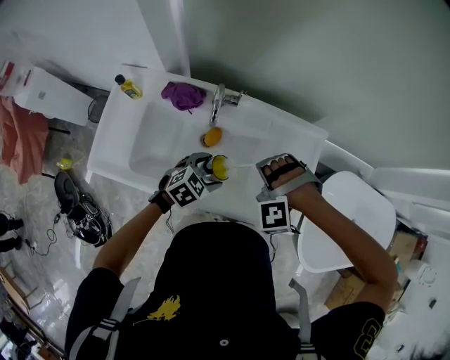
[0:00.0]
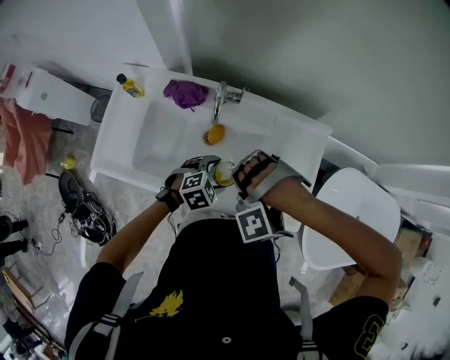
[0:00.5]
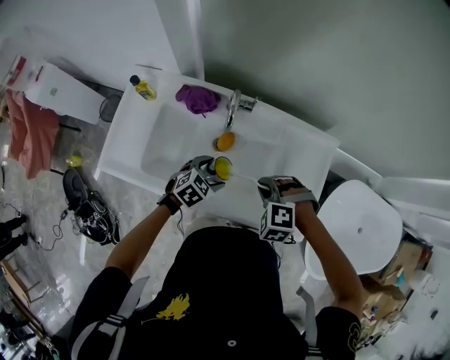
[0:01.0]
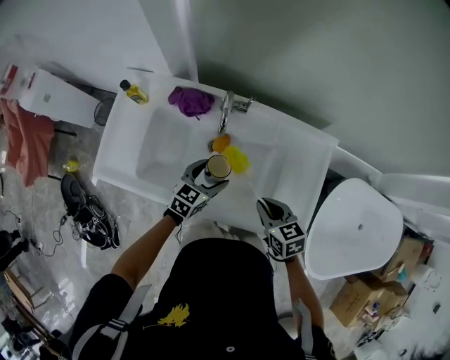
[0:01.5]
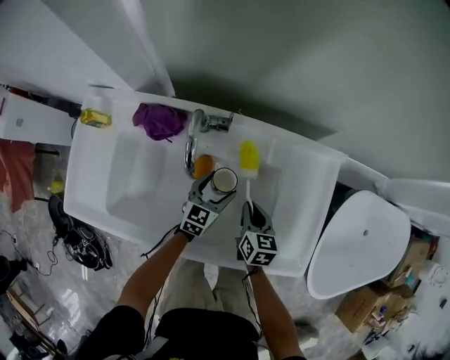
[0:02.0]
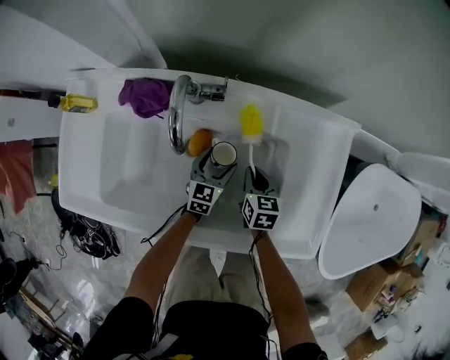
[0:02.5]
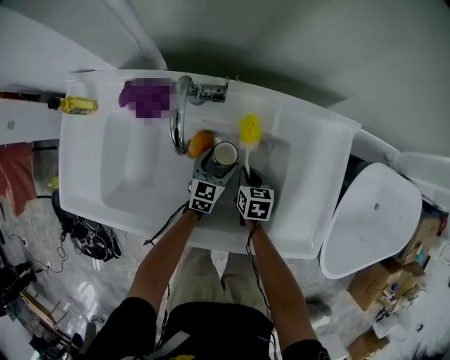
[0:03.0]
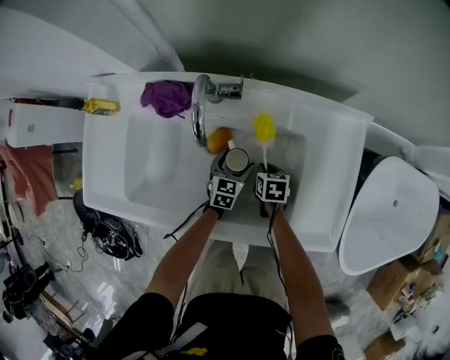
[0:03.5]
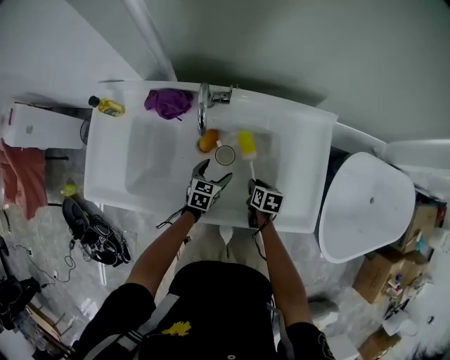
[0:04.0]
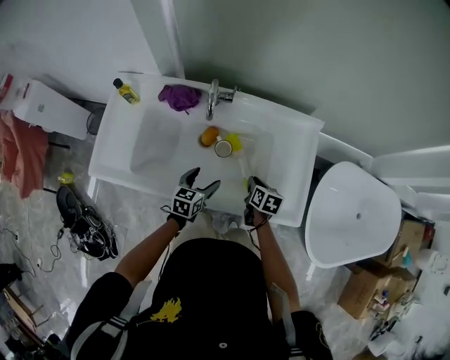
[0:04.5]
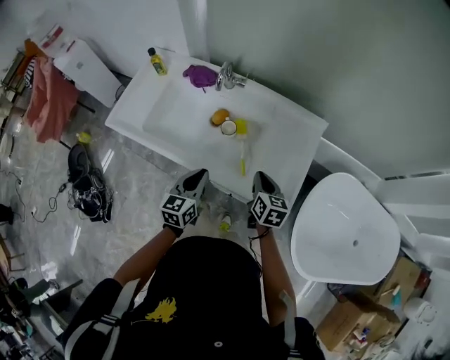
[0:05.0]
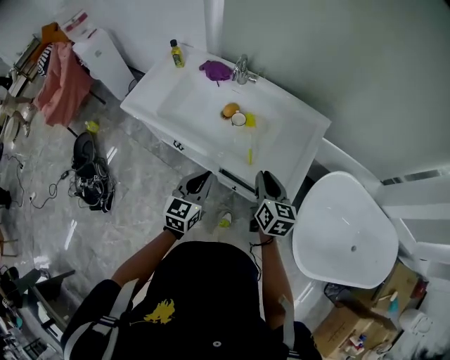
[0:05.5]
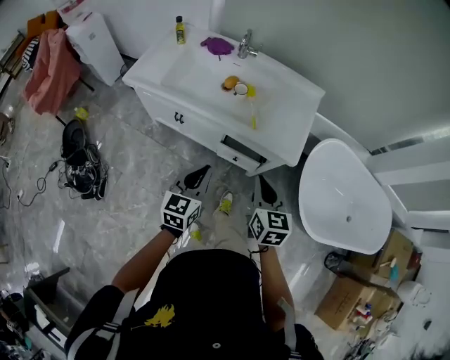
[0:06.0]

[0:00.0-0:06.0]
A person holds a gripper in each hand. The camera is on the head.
0:00.0 to 0:02.0: The right gripper heads downward, covering approximately 25 cm, and twists approximately 120 degrees clockwise, seen from behind. Meanwhile the left gripper goes roughly 15 cm downward, and changes its angle by roughly 30 degrees.
0:02.0 to 0:04.0: The right gripper is displaced downward and backward by roughly 10 cm, and changes its angle by some 20 degrees. The left gripper heads backward, covering about 5 cm, and reaches about 10 cm downward, then returns.
0:04.0 to 0:06.0: Both grippers are carried backward, roughly 50 cm. Both grippers move upward, roughly 30 cm. The right gripper tilts its fingers roughly 40 degrees upward. The left gripper turns by about 30 degrees, and closes.

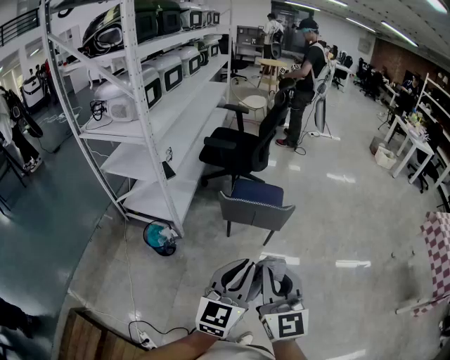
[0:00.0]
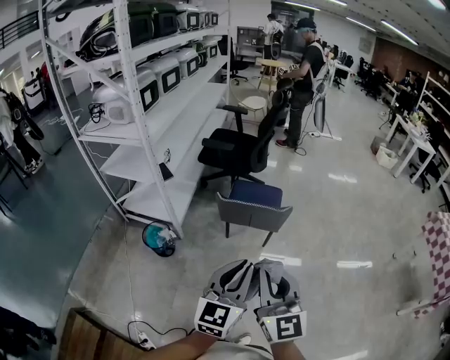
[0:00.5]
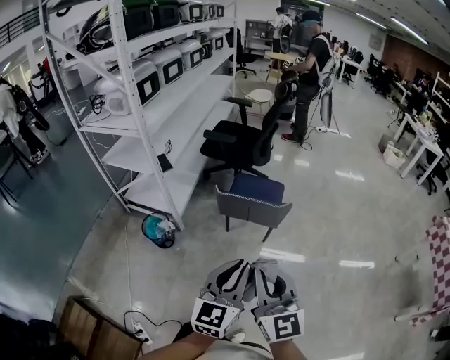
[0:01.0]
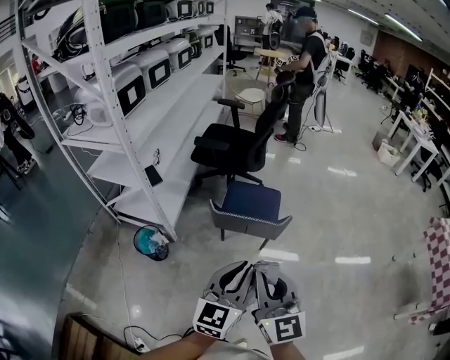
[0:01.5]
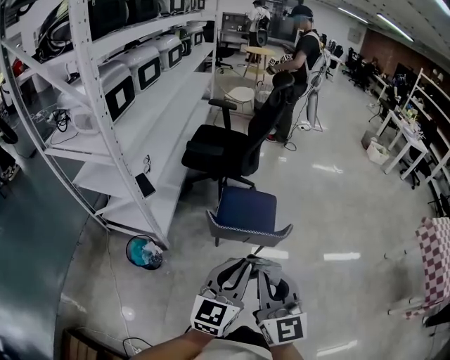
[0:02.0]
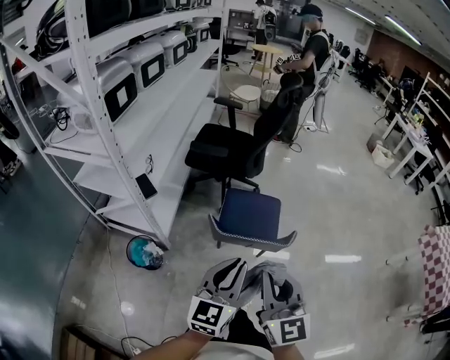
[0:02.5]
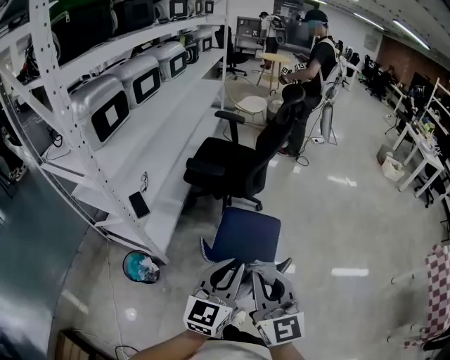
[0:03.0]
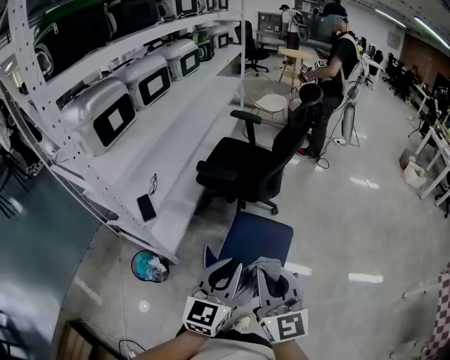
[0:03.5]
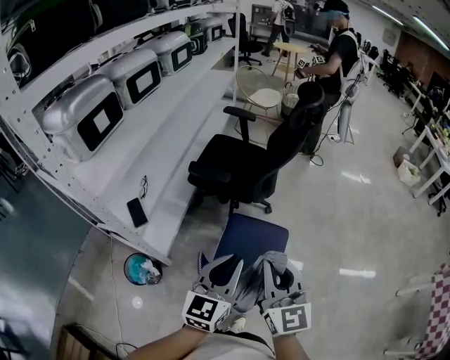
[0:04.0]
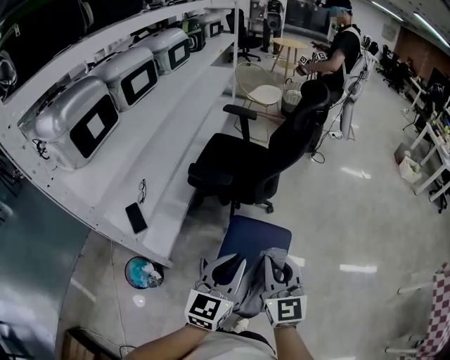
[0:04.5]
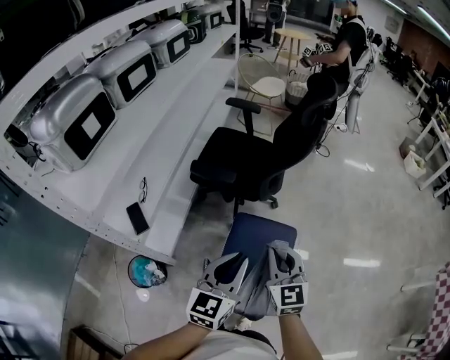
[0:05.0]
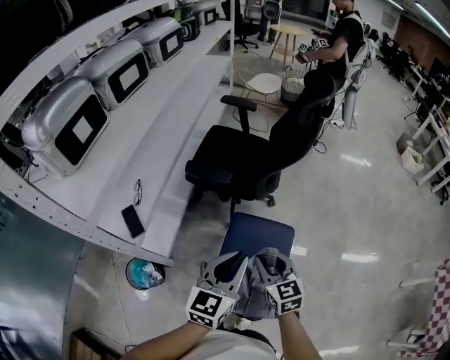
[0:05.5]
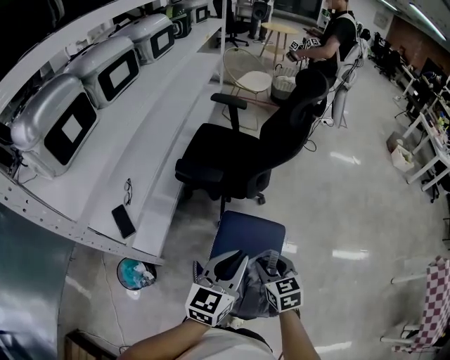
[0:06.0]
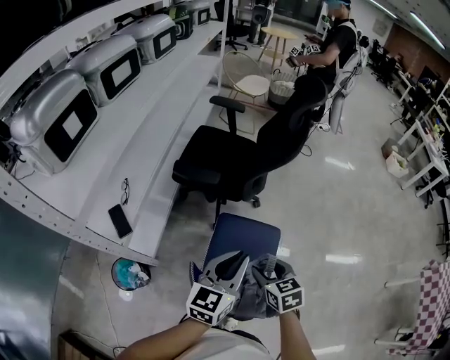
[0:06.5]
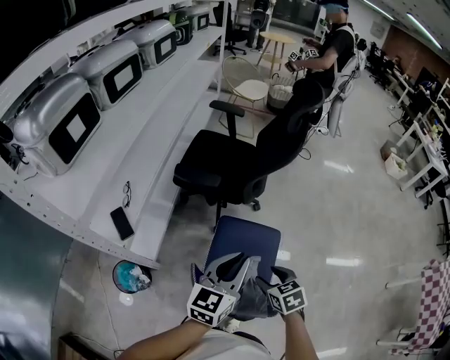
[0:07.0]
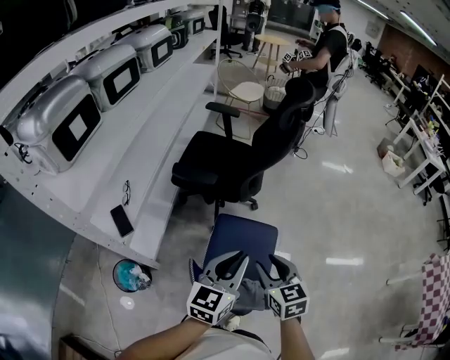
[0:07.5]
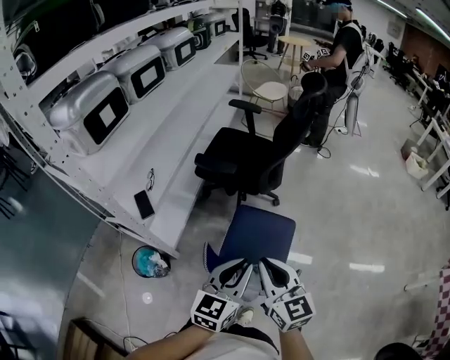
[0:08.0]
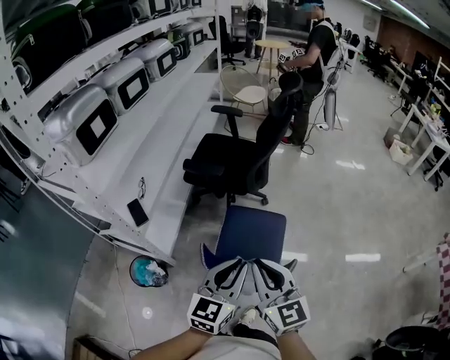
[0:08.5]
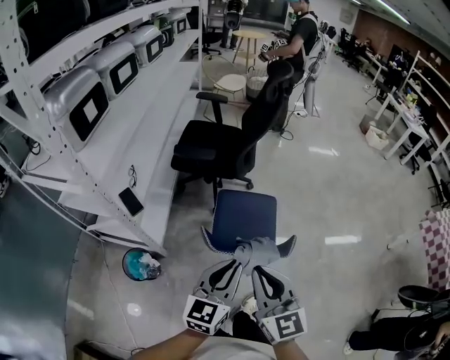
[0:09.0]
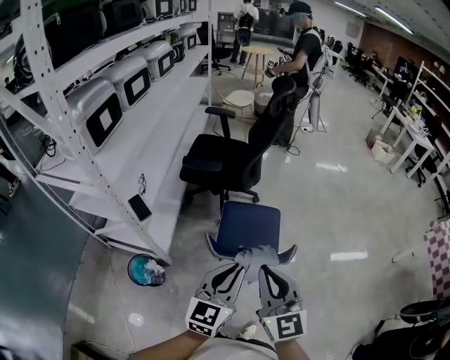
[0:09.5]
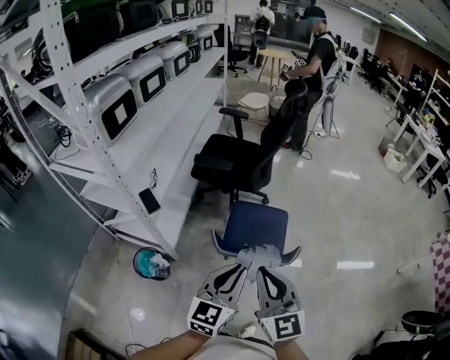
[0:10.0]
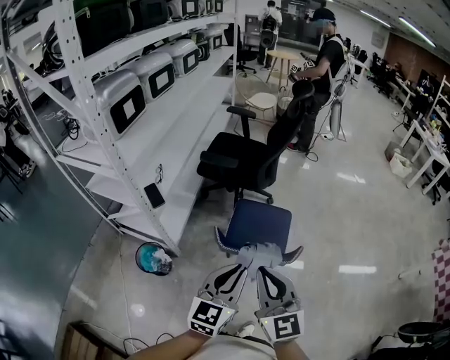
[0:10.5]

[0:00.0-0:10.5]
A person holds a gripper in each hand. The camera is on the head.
0:00.0 to 0:02.0: The grippers both shift forward by roughly 20 cm.
0:02.0 to 0:04.0: Both grippers move forward, roughly 30 cm.
0:04.0 to 0:06.5: The right gripper travels downward by about 20 cm, points its fingers some 40 degrees further downward, and opens its fingers. The left gripper shifts approximately 10 cm forward.
0:06.5 to 0:08.5: The right gripper travels upward and backward by some 25 cm, points its fingers some 40 degrees further upward, and closes; the left gripper travels backward by some 15 cm.
0:08.5 to 0:10.5: The grippers both shift backward by some 15 cm.

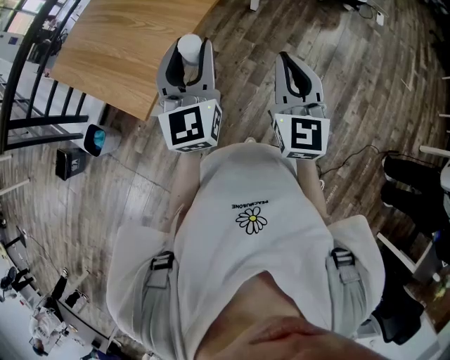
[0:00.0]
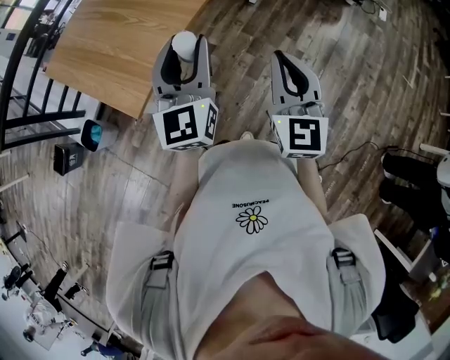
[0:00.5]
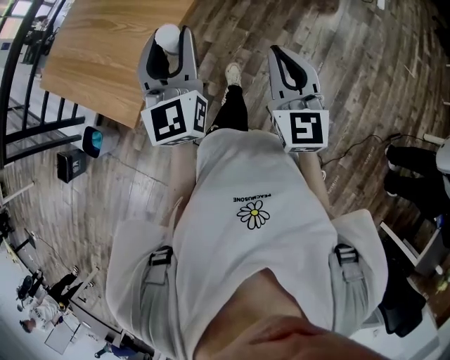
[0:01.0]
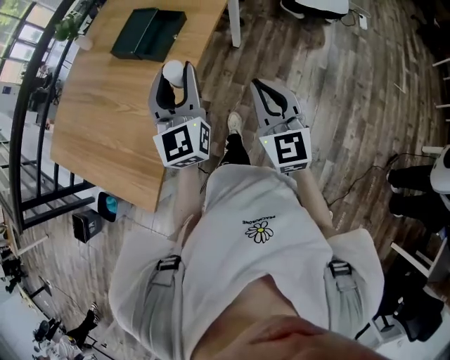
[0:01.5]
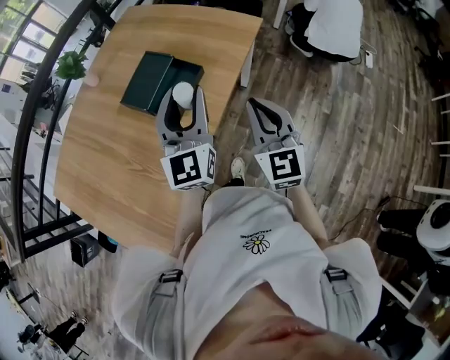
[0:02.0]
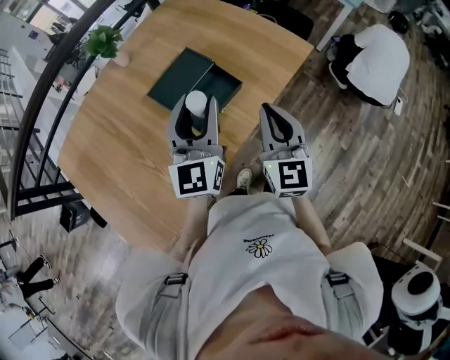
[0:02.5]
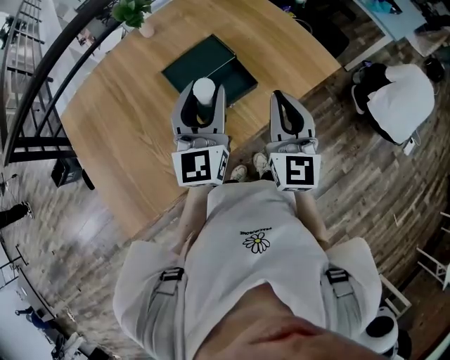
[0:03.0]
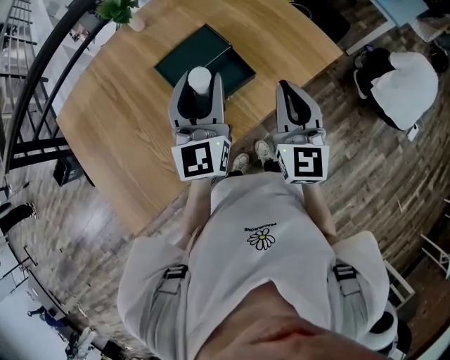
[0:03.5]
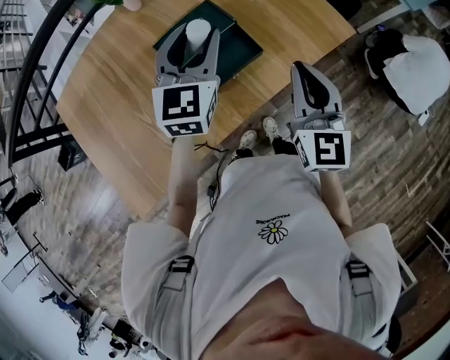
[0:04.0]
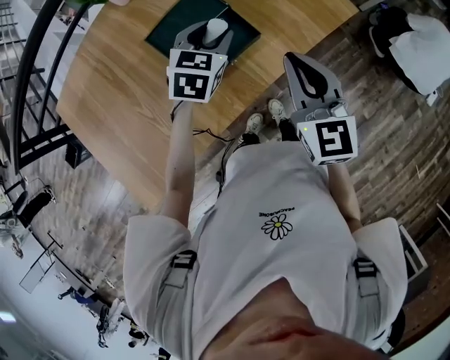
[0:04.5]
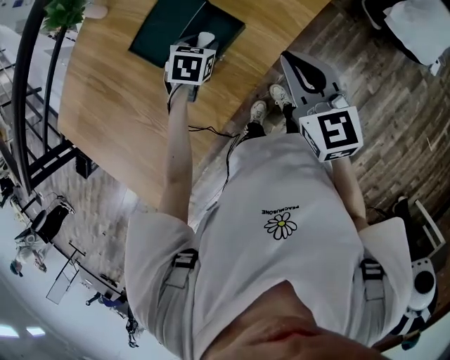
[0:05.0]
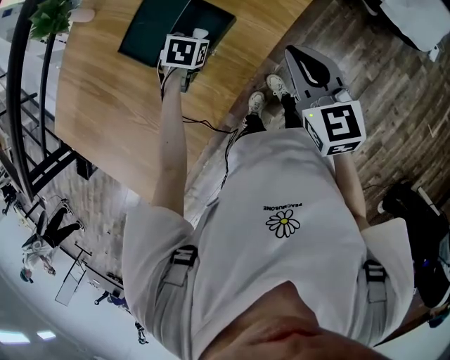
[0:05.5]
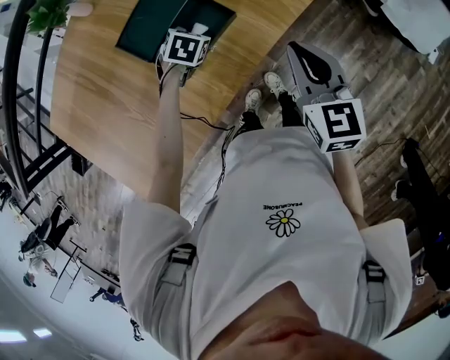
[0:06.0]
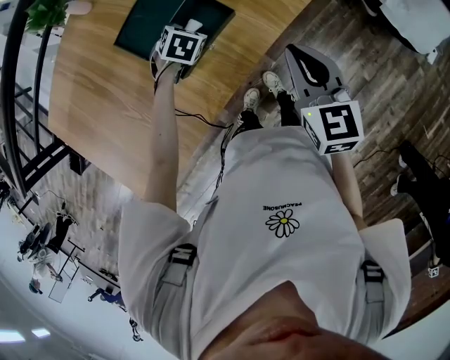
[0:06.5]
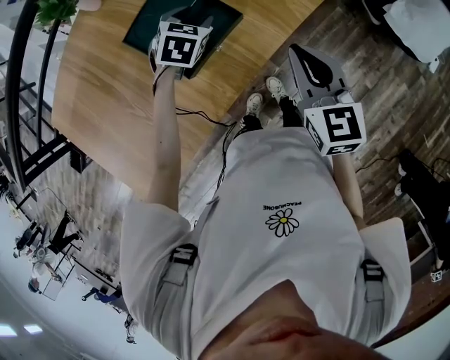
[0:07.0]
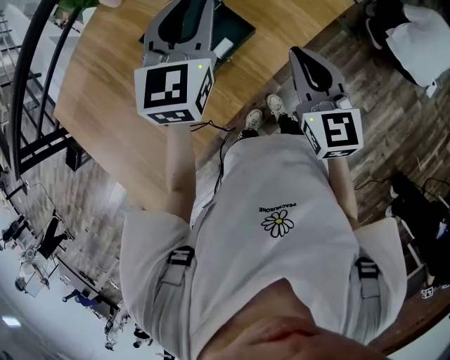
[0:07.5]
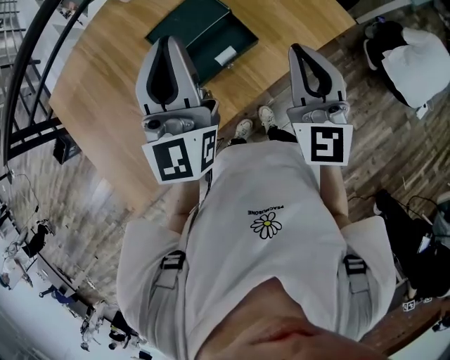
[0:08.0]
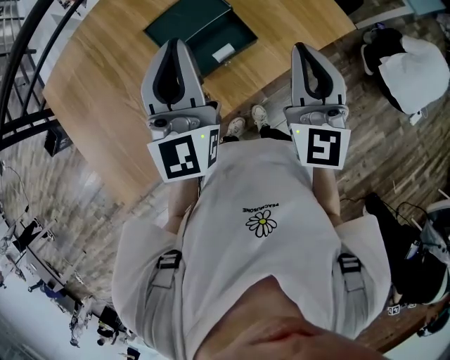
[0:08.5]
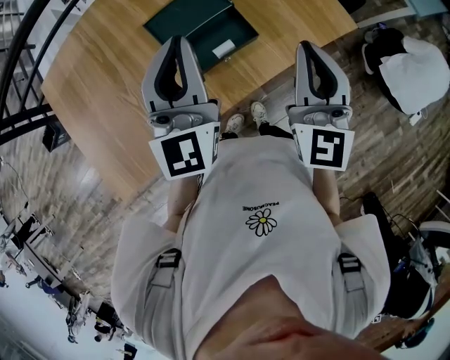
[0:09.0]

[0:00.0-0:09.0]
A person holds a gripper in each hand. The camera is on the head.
0:00.0 to 0:02.0: The two grippers travel together, forward, approximately 40 cm.
0:02.0 to 0:04.5: The right gripper moves forward, about 15 cm, and turns by some 30 degrees; the left gripper heads forward and downward, covering about 25 cm, and points its fingers about 40 degrees further downward.
0:04.5 to 0:07.0: The left gripper heads downward, covering roughly 10 cm. Meanwhile the right gripper is displaced downward by some 5 cm.
0:07.0 to 0:09.0: The right gripper shifts about 15 cm upward, and changes its angle by roughly 30 degrees, while the left gripper heads upward and backward, covering about 30 cm, angles its fingers upward, by some 60 degrees, and closes its fingers.

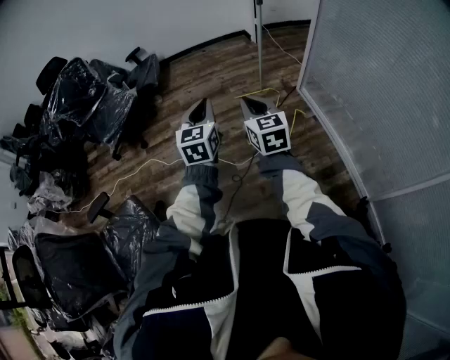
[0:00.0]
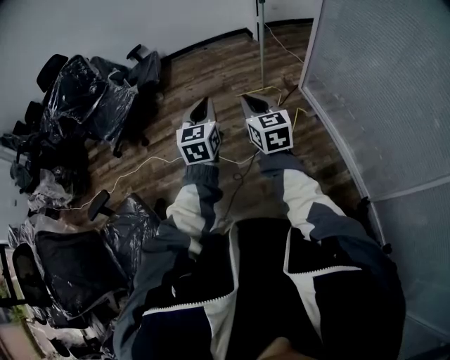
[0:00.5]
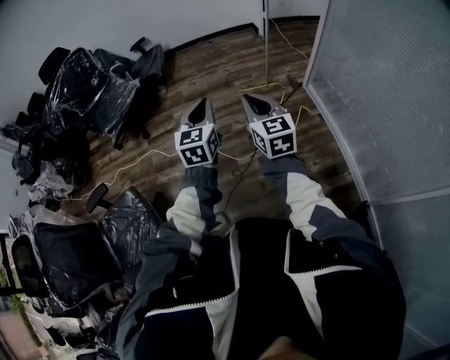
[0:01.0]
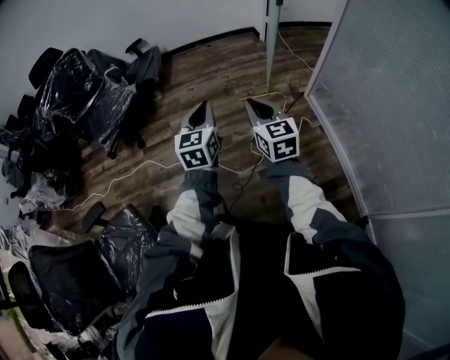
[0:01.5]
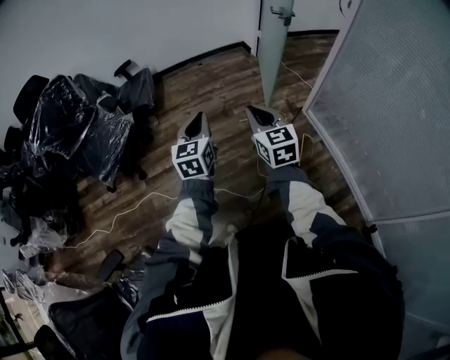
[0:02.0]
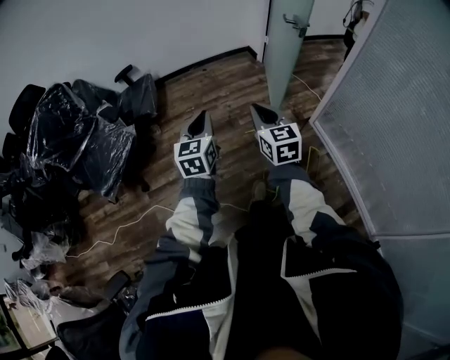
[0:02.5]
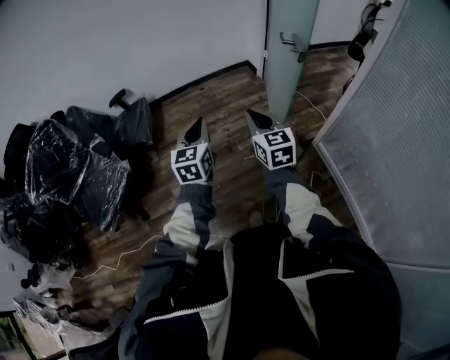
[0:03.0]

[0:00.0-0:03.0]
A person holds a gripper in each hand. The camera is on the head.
0:00.0 to 0:01.5: Both grippers travel together forward, about 10 cm.
0:01.5 to 0:03.0: The two grippers travel together, forward, roughly 50 cm.
